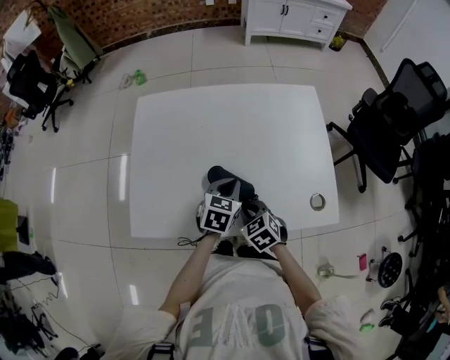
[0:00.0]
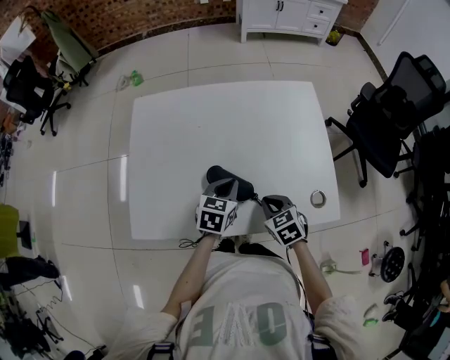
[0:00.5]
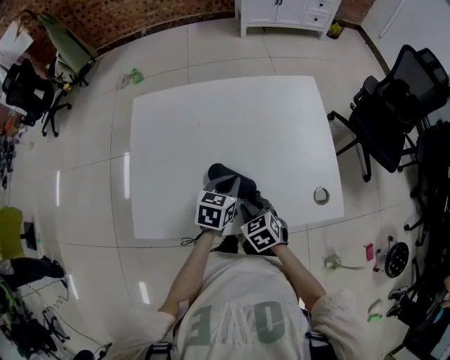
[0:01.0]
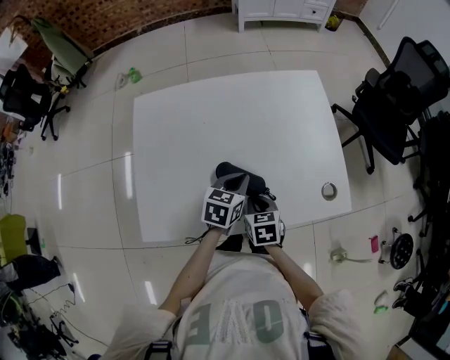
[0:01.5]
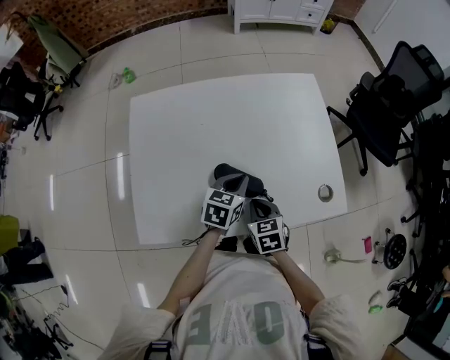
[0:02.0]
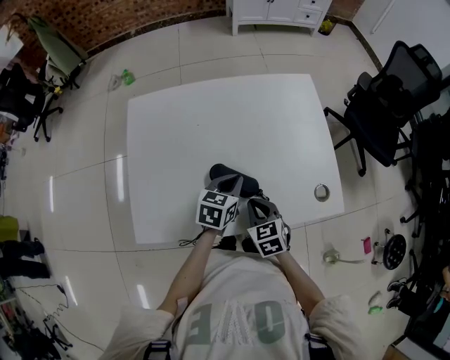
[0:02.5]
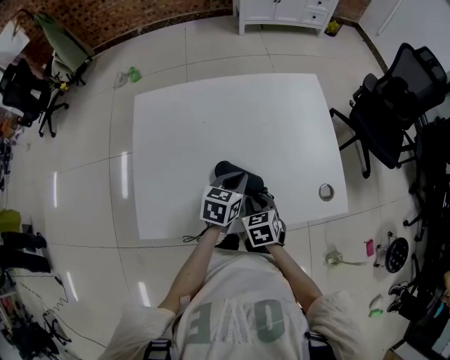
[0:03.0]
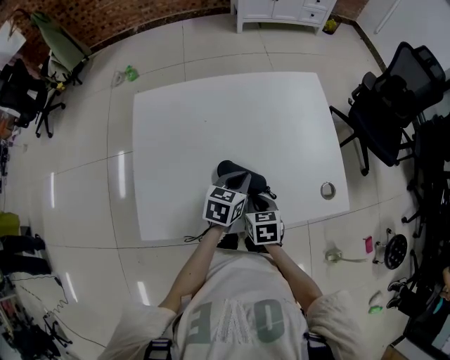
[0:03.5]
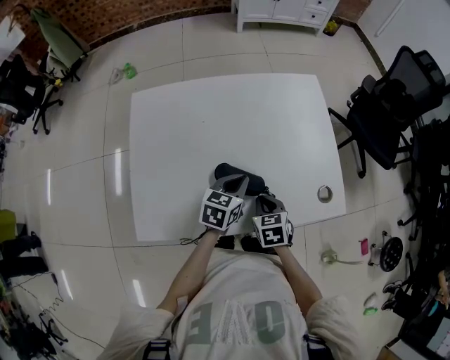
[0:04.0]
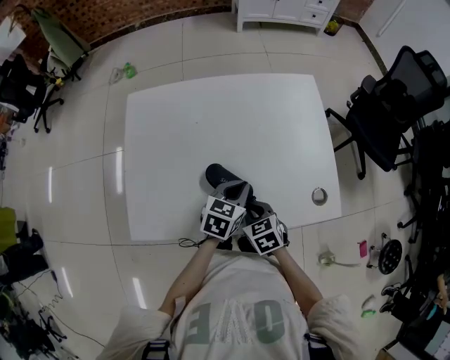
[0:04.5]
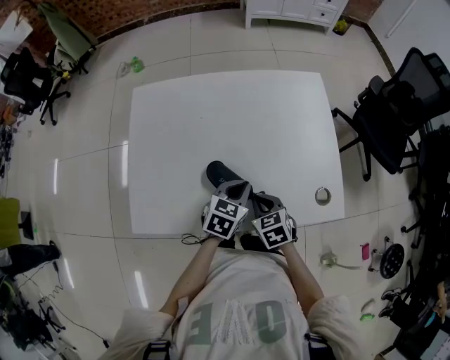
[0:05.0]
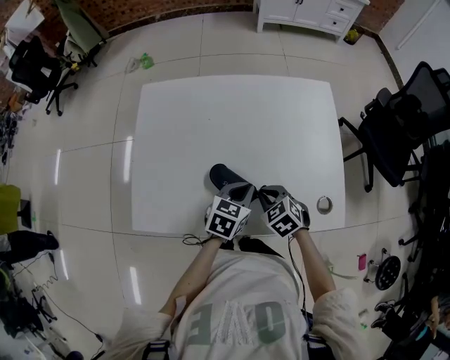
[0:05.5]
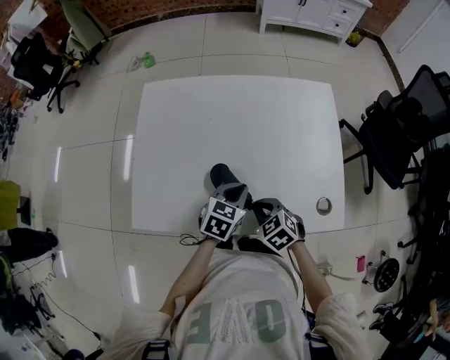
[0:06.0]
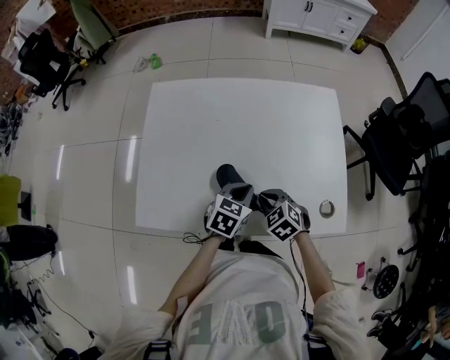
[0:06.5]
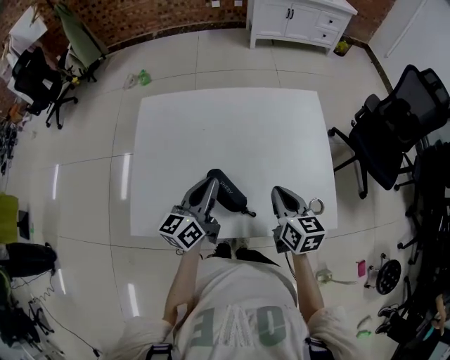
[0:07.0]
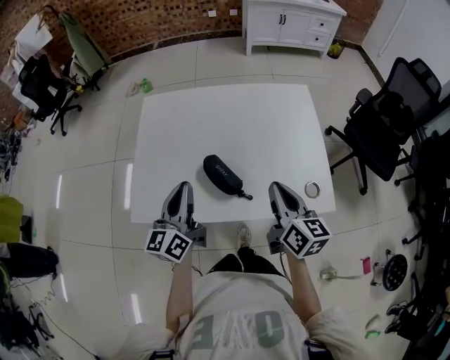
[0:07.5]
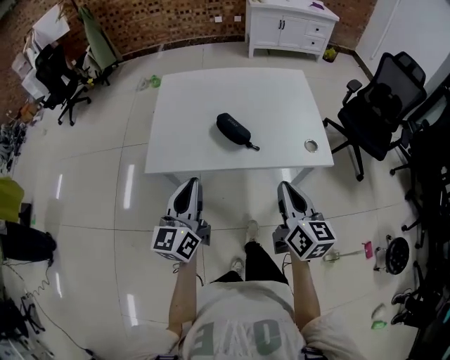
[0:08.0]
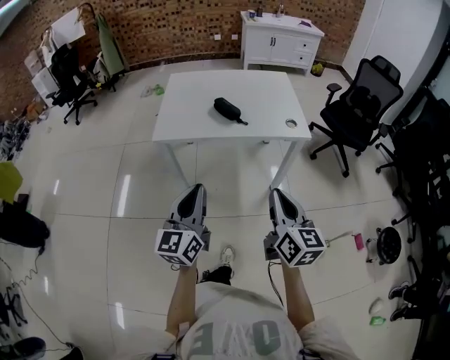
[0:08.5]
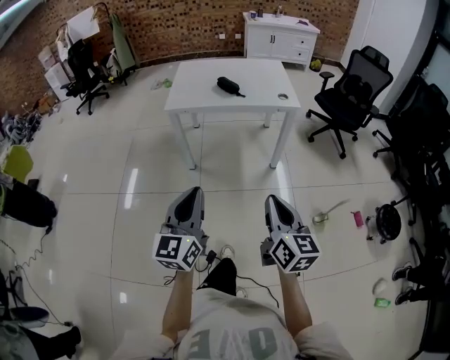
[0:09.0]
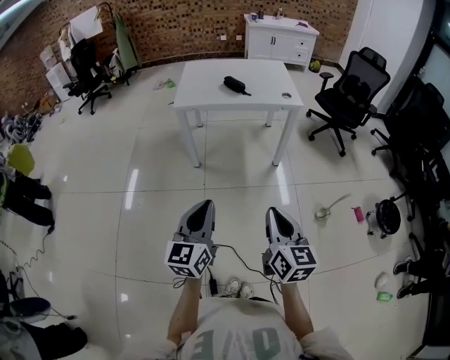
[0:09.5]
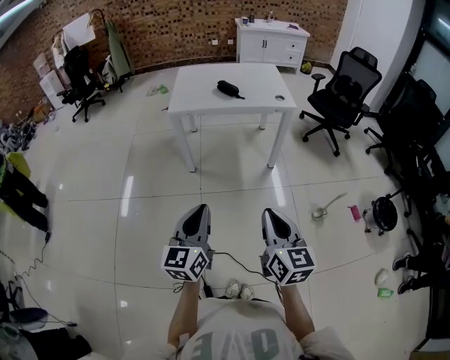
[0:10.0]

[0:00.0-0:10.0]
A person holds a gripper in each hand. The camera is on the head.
0:00.0 to 0:02.0: The right gripper goes to the right and returns, roughly 10 cm each way, and rotates about 30 degrees.
0:02.0 to 0:04.0: The grippers move only a little.
0:04.0 to 0:06.0: The right gripper rotates about 40 degrees.
0:06.0 to 0:08.0: The left gripper goes some 40 cm backward, upward and to the left, and points its fingers some 50 degrees further upward. The right gripper heads backward and upward, covering approximately 35 cm, and angles its fingers upward, by approximately 40 degrees.
0:08.0 to 0:10.0: The two grippers travel together, backward, about 60 cm.

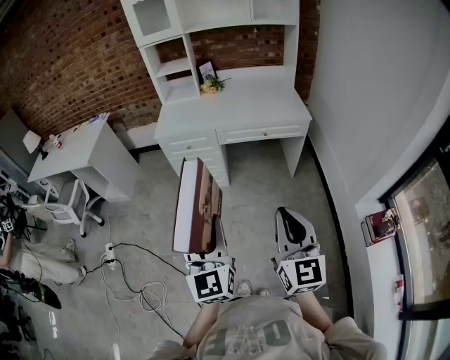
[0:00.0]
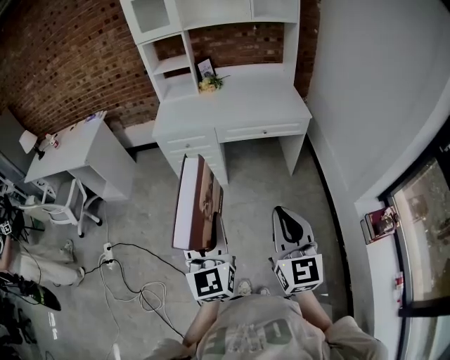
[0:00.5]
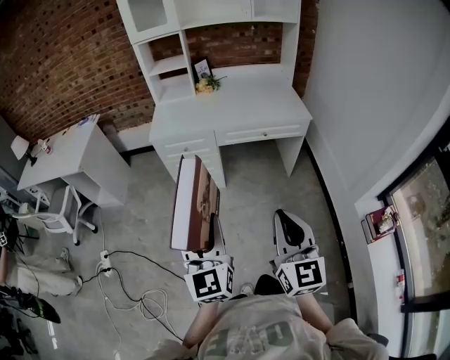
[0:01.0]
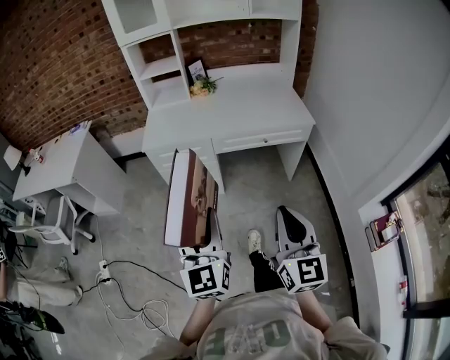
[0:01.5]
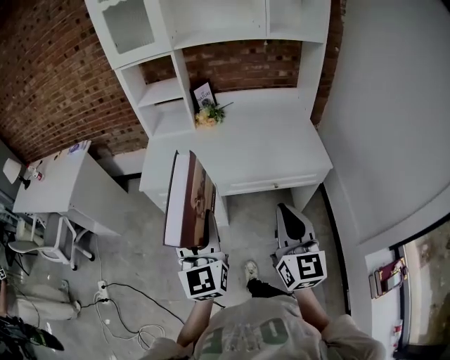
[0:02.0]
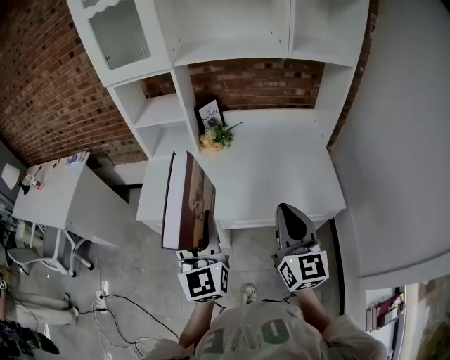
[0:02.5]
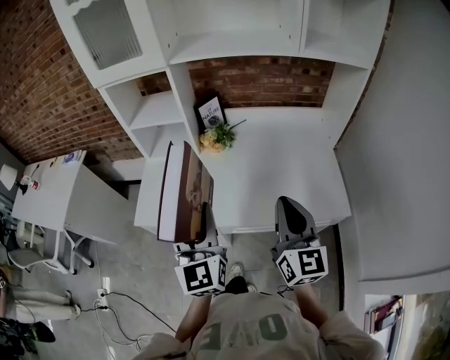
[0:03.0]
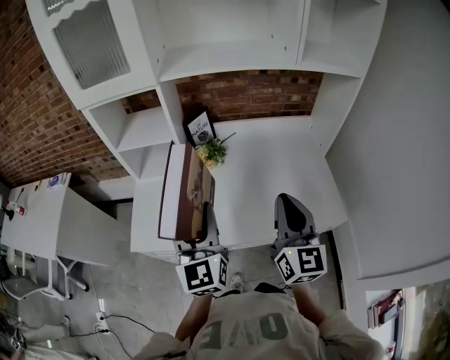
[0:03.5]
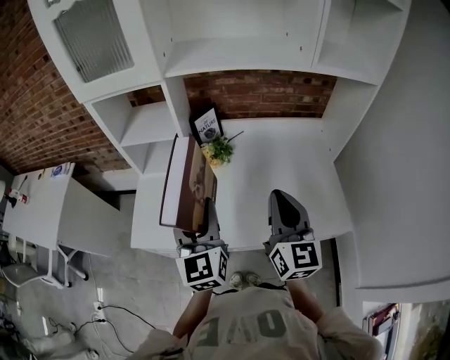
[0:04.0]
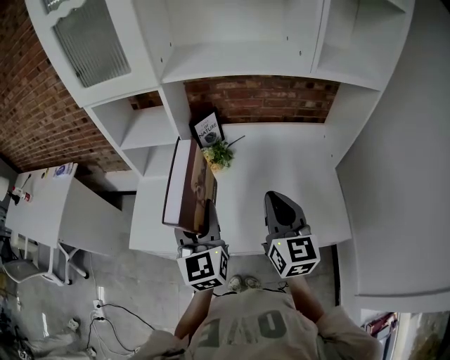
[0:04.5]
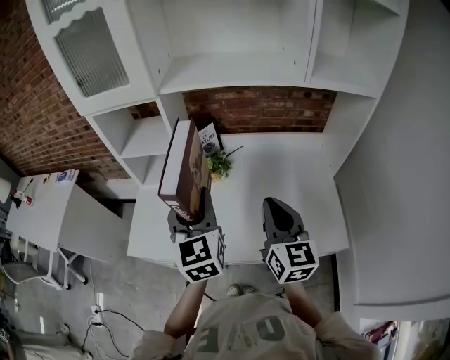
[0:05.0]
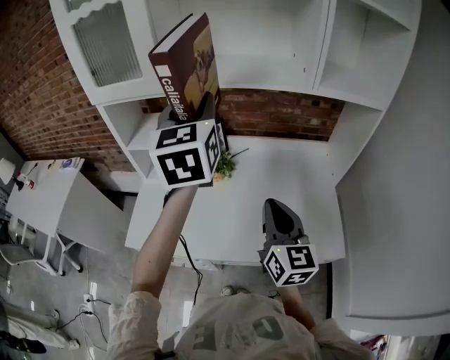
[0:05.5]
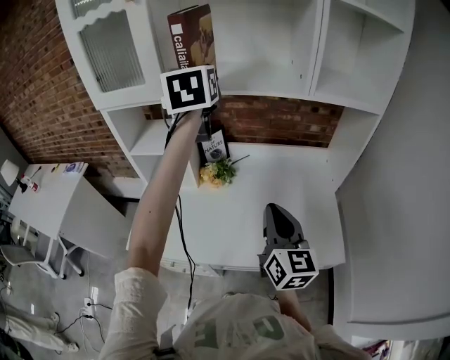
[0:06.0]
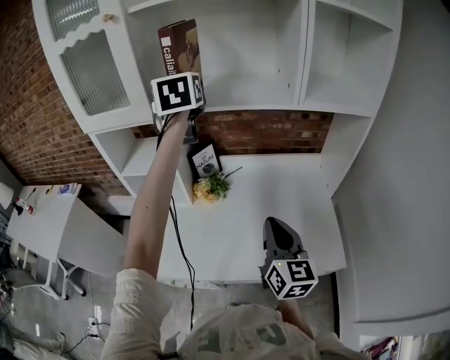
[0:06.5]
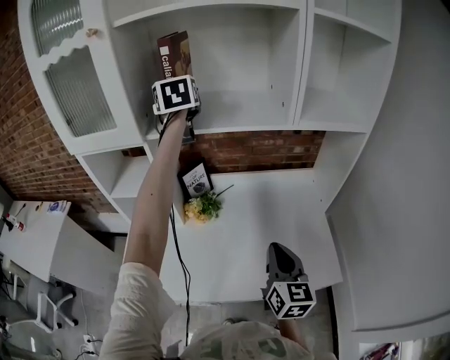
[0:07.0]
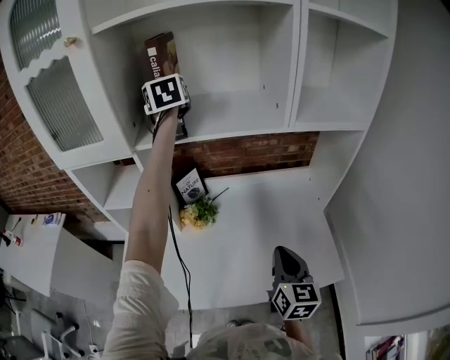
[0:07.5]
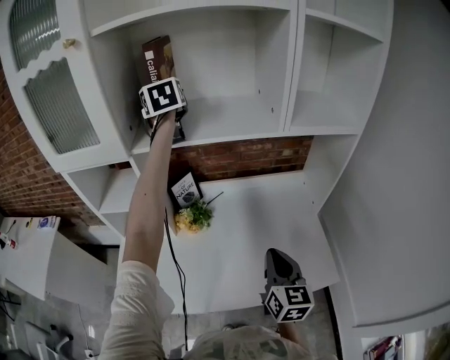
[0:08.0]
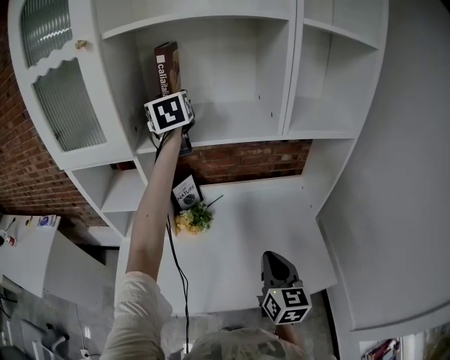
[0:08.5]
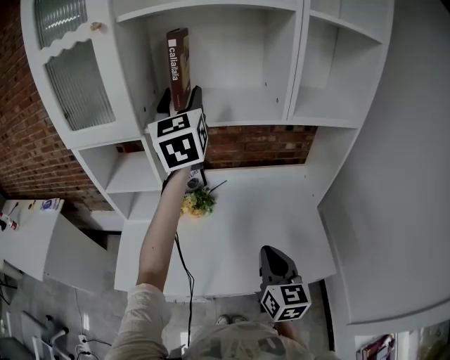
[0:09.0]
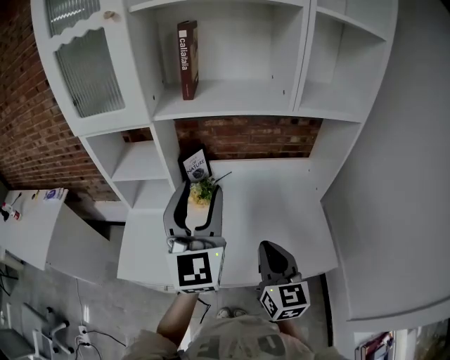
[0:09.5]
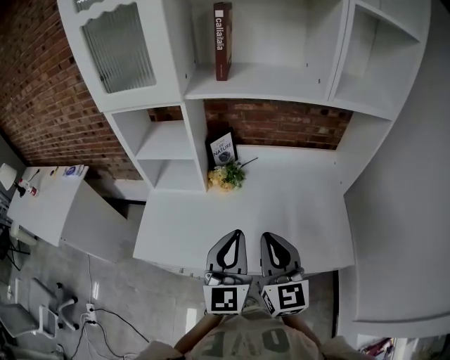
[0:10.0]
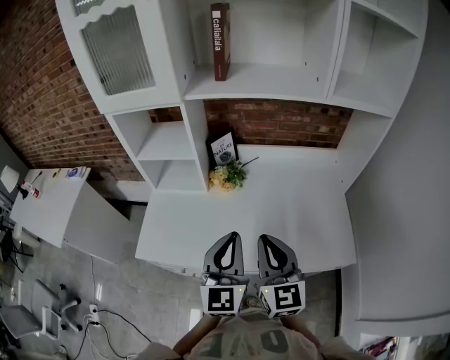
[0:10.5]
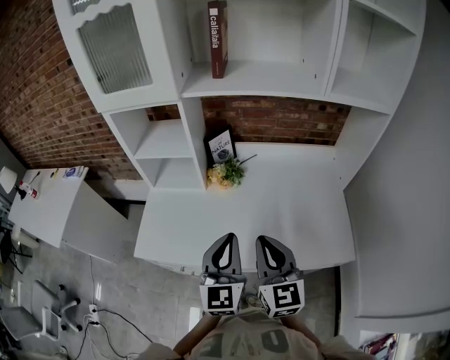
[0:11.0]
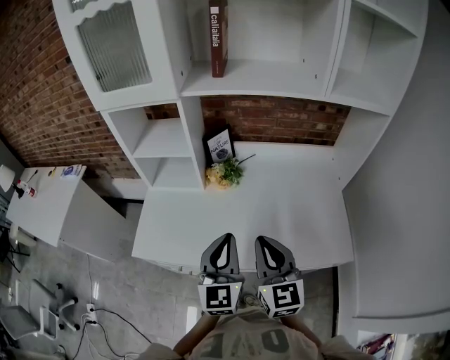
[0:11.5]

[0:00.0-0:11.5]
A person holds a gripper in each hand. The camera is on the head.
0:00.0 to 0:02.0: The grippers both shift forward by approximately 35 cm.
0:02.0 to 0:04.0: Both grippers move forward, some 35 cm.
0:04.0 to 0:06.0: The left gripper is displaced upward and forward by approximately 35 cm.
0:06.0 to 0:07.5: The left gripper is displaced forward by some 20 cm, while the right gripper goes some 10 cm downward and to the right.
0:07.5 to 0:09.5: The right gripper goes roughly 10 cm backward and to the left, while the left gripper heads backward, covering about 40 cm, and changes its angle by some 30 degrees.
0:09.5 to 0:11.5: The left gripper goes approximately 20 cm downward and backward, and closes its fingers; the right gripper travels to the left by some 5 cm.

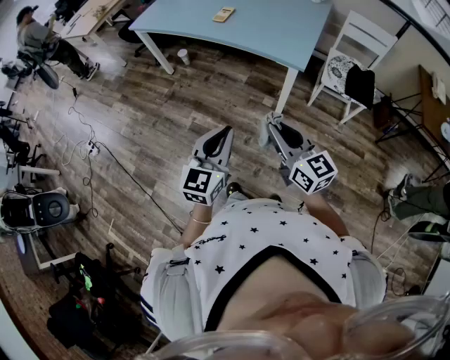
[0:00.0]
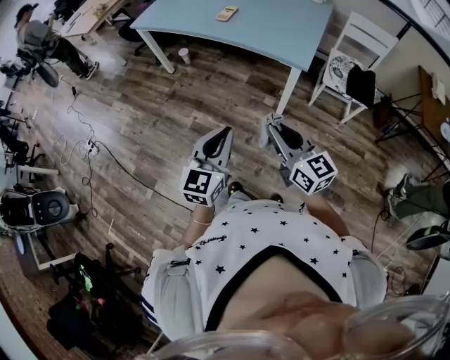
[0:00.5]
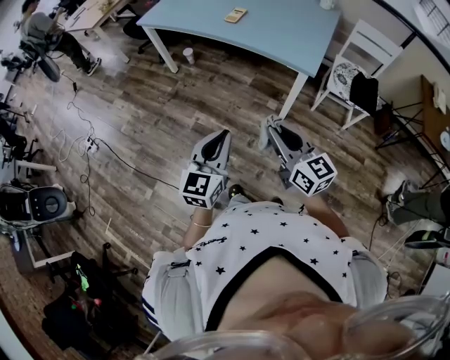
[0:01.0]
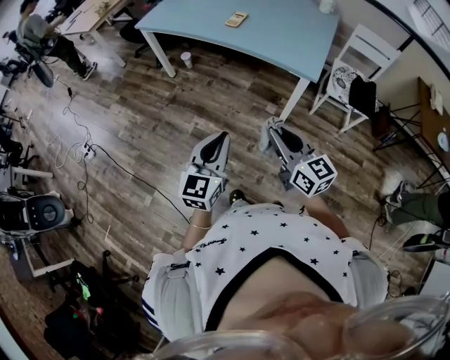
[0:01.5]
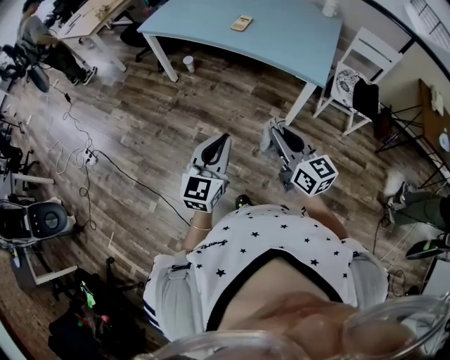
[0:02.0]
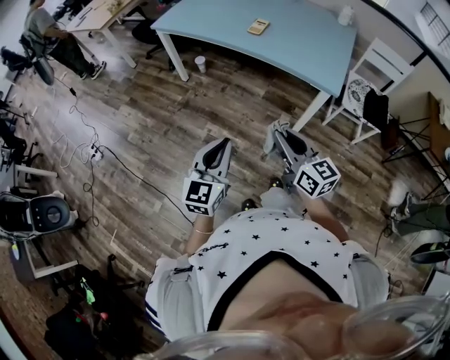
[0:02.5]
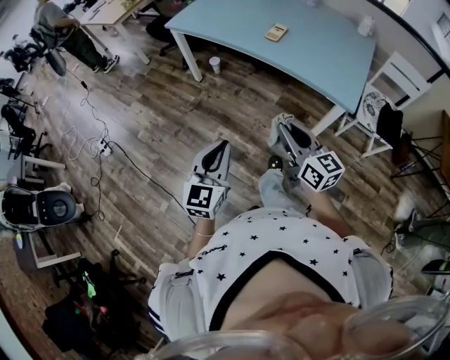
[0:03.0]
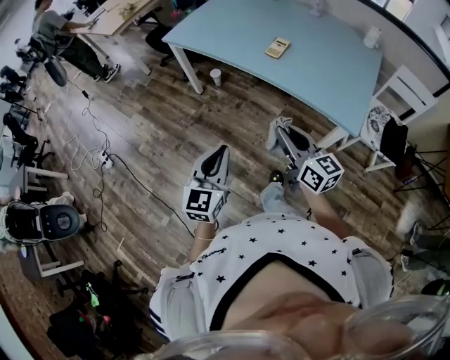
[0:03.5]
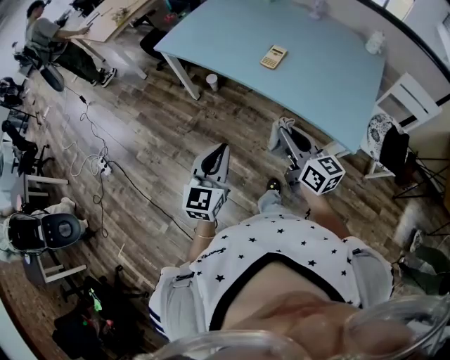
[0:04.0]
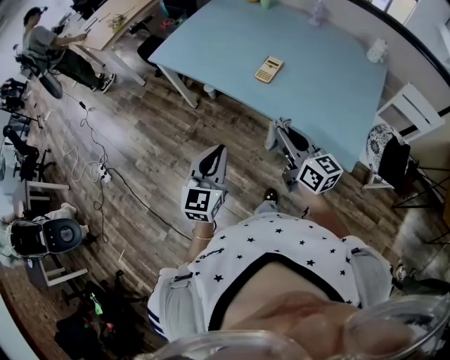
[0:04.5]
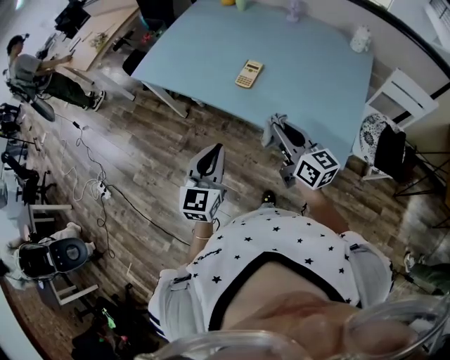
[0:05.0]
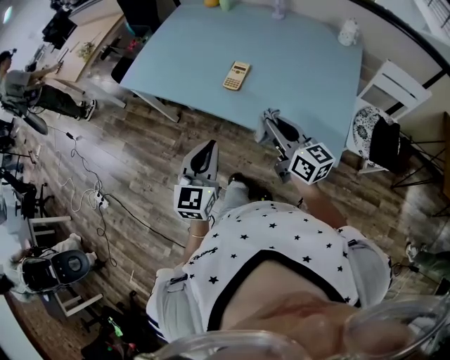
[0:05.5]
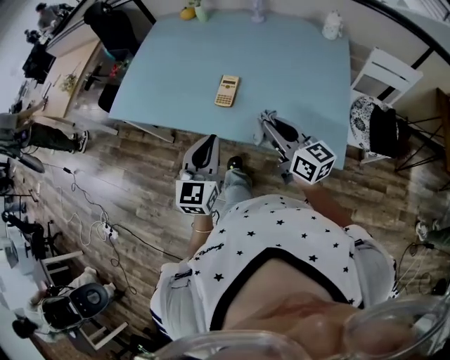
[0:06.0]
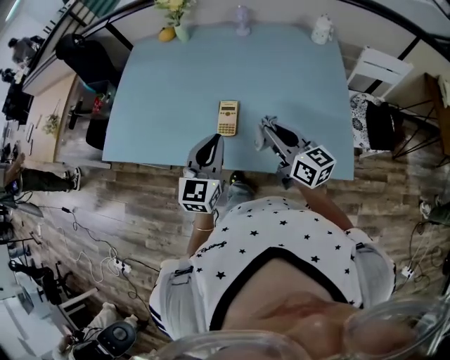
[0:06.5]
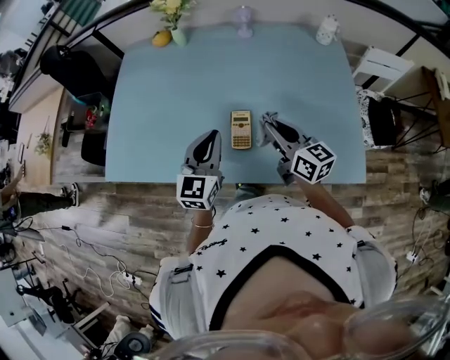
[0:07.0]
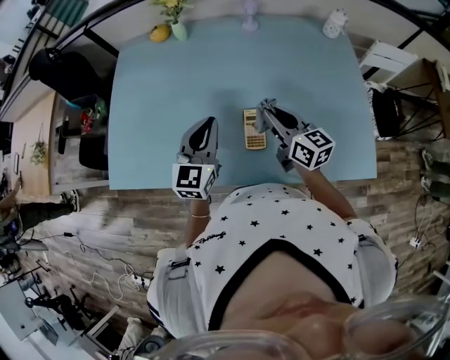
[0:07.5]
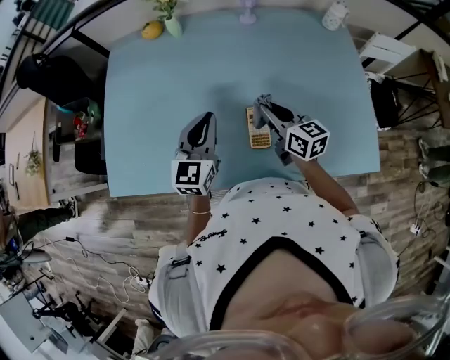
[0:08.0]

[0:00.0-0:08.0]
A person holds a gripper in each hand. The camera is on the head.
0:00.0 to 0:02.0: The left gripper is displaced to the left by about 10 cm; the right gripper heads to the left and forward, covering about 10 cm.
0:02.0 to 0:04.0: Both grippers move forward, some 25 cm.
0:04.0 to 0:06.0: Both grippers travel together forward and to the right, roughly 20 cm.
0:06.0 to 0:08.0: The two grippers go about 30 cm forward and to the left. The right gripper rotates about 20 degrees. Meanwhile the left gripper changes its angle by some 20 degrees.
